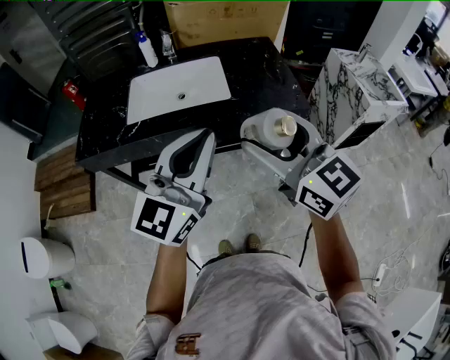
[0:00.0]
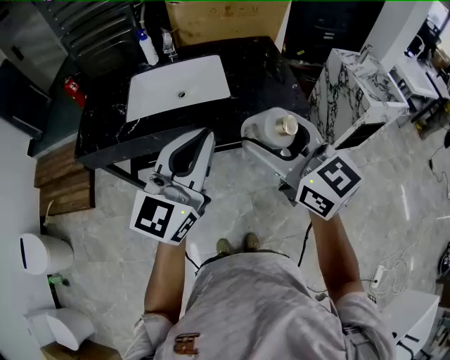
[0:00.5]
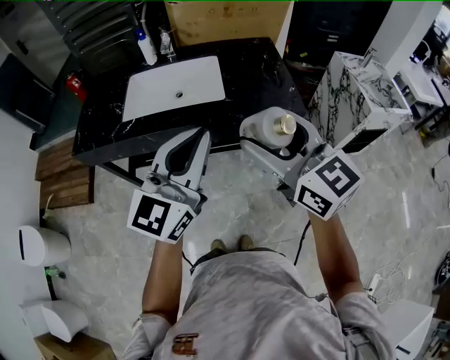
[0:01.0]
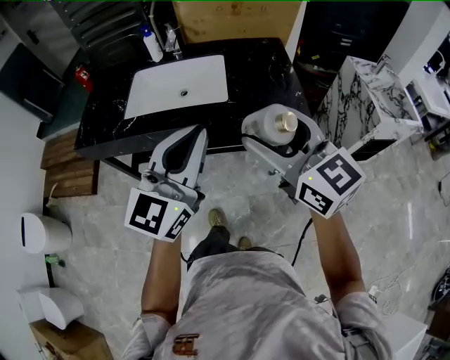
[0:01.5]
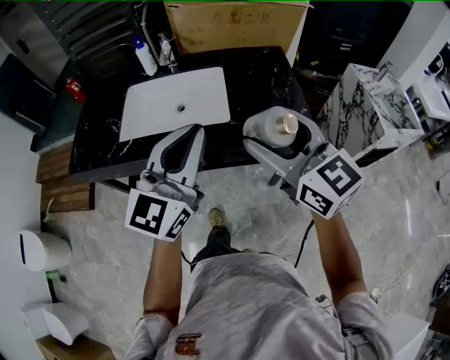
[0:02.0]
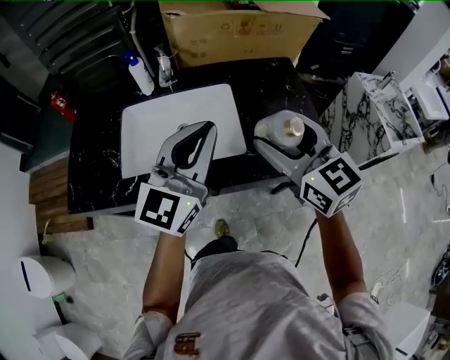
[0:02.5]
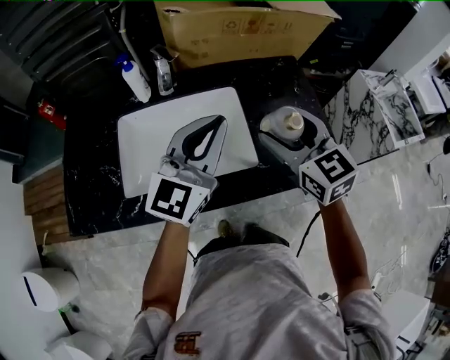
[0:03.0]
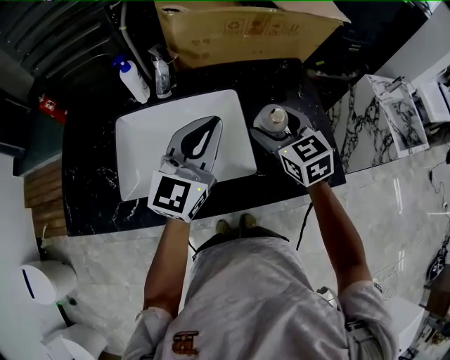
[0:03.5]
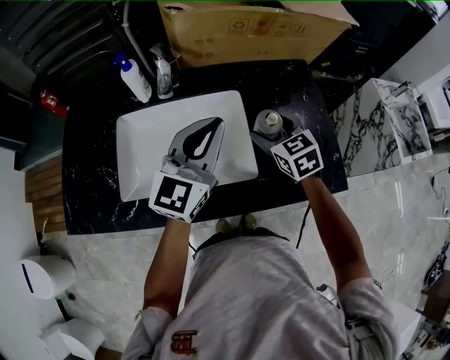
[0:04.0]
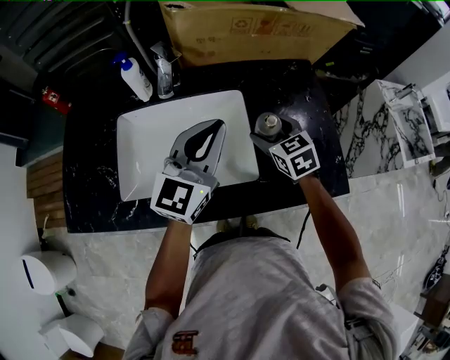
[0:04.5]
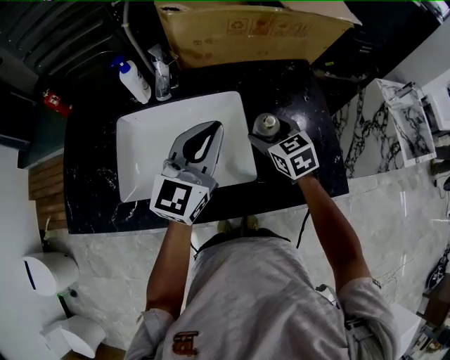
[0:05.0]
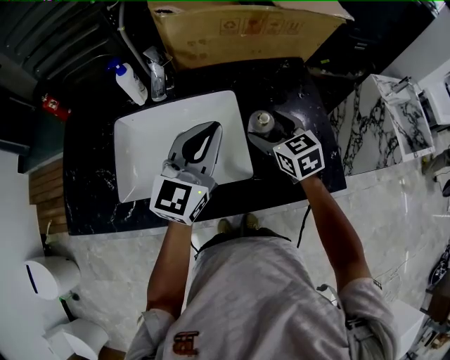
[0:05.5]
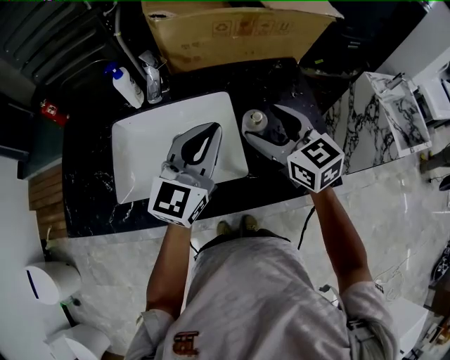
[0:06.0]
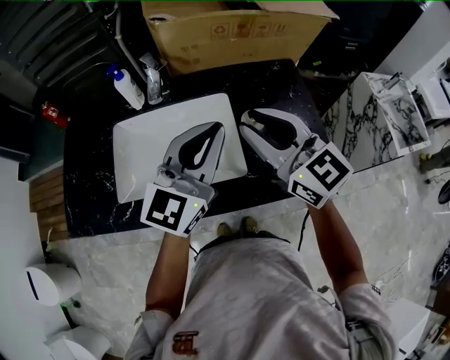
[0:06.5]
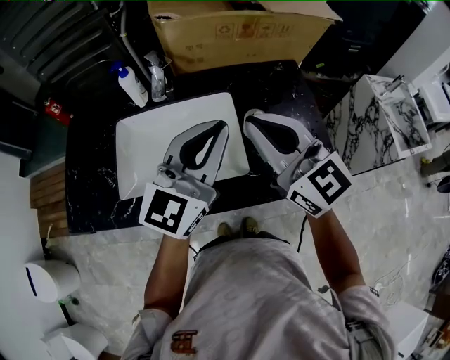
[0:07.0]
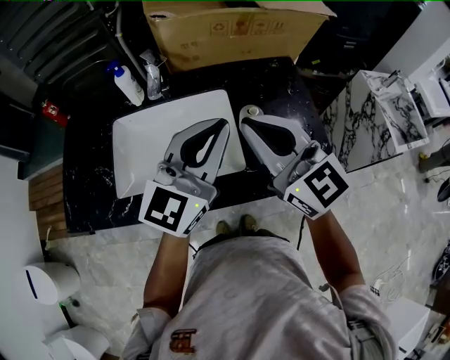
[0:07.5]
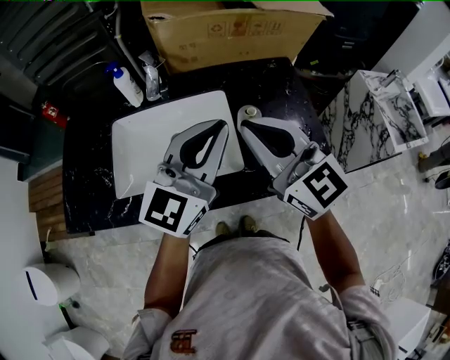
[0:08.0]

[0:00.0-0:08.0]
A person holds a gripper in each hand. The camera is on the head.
0:00.0 to 0:02.0: Both grippers move forward, some 15 cm.
0:02.0 to 0:04.0: The left gripper shifts approximately 30 cm forward; the right gripper goes some 40 cm forward and downward, and points its fingers roughly 30 degrees further downward.
0:04.0 to 0:06.0: The right gripper is displaced upward by some 10 cm, and turns by approximately 20 degrees.
0:06.0 to 0:08.0: The right gripper heads upward and backward, covering some 15 cm, and closes its fingers. The left gripper heads upward and backward, covering approximately 10 cm.

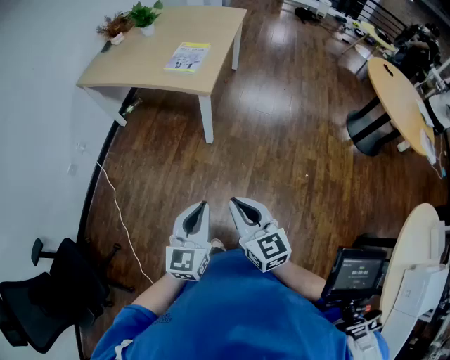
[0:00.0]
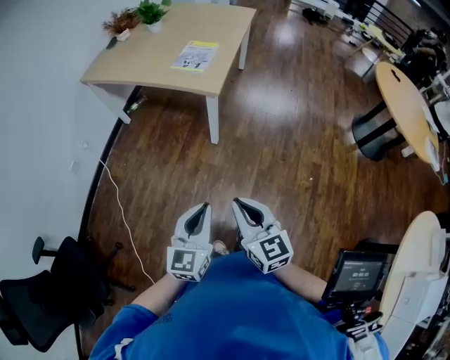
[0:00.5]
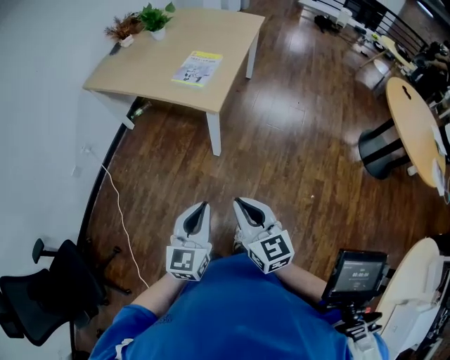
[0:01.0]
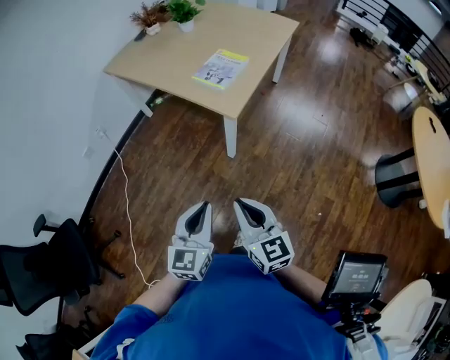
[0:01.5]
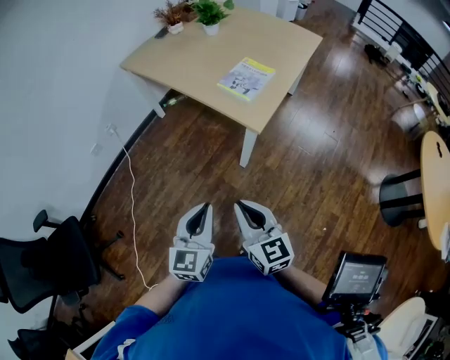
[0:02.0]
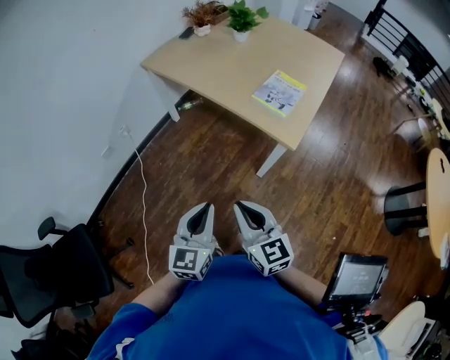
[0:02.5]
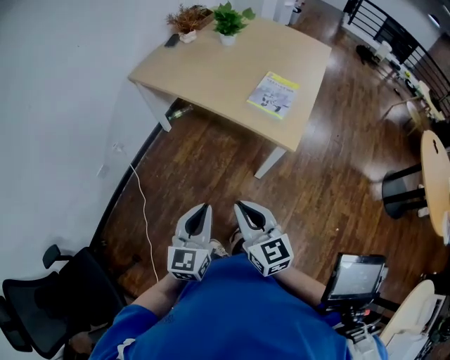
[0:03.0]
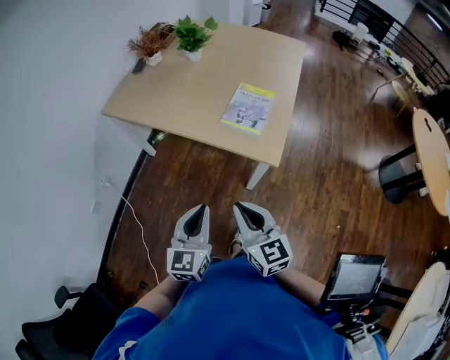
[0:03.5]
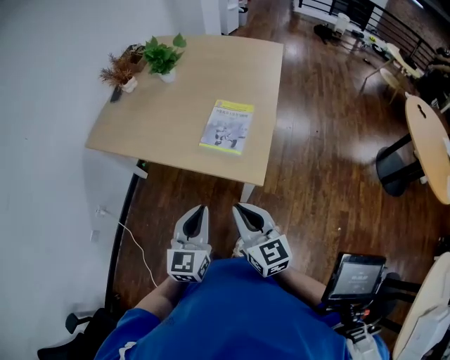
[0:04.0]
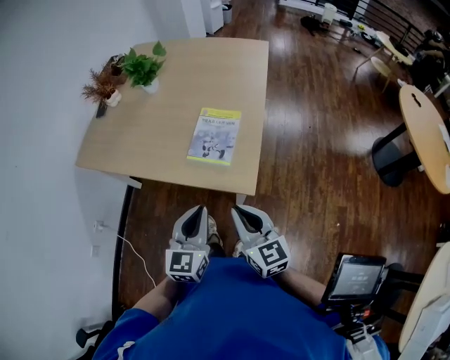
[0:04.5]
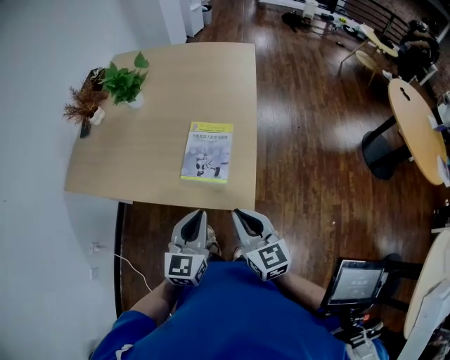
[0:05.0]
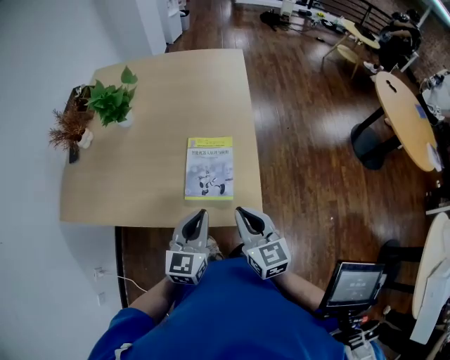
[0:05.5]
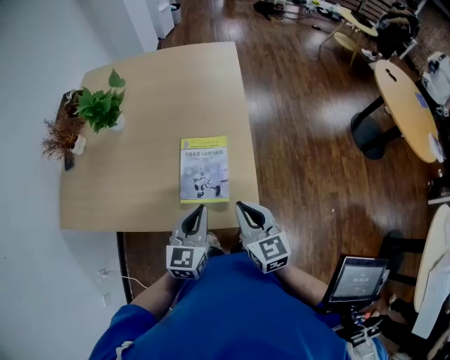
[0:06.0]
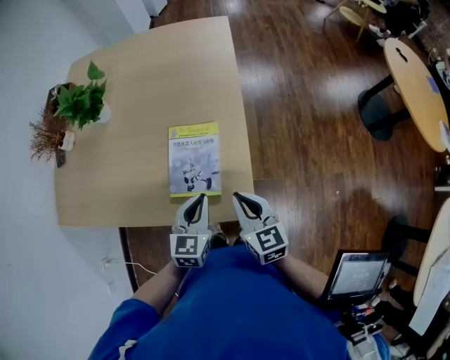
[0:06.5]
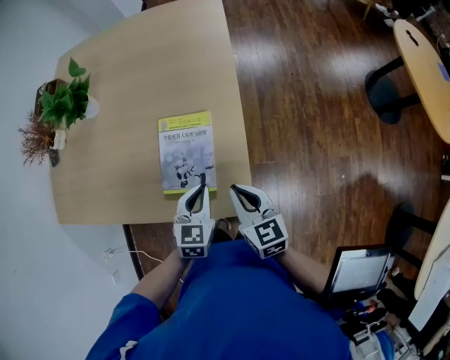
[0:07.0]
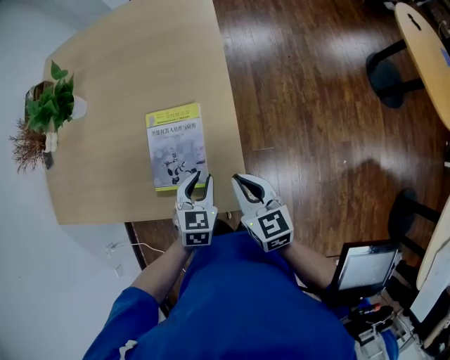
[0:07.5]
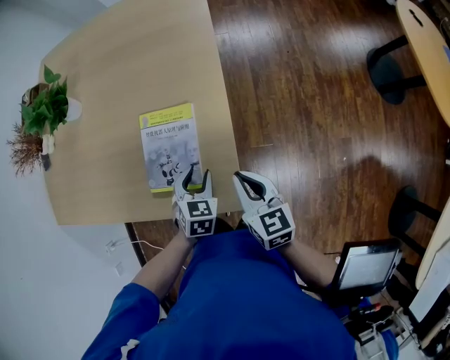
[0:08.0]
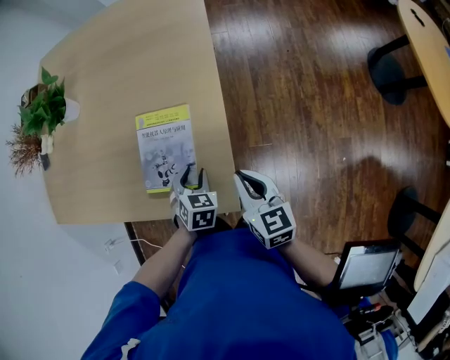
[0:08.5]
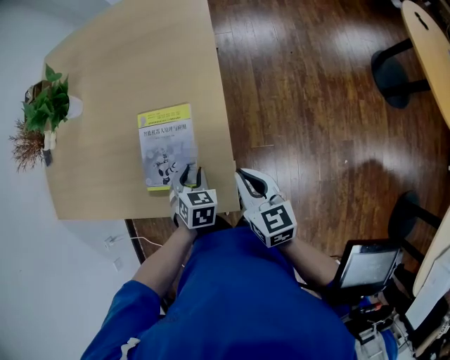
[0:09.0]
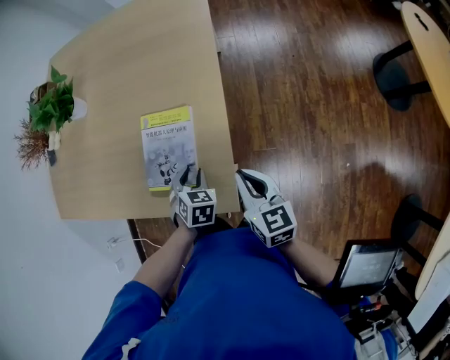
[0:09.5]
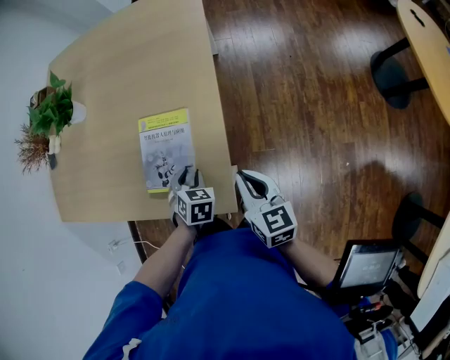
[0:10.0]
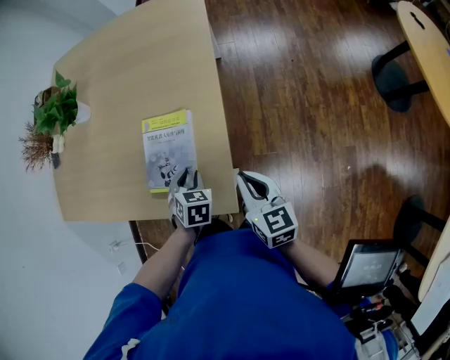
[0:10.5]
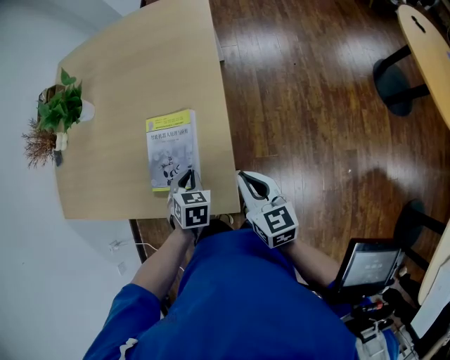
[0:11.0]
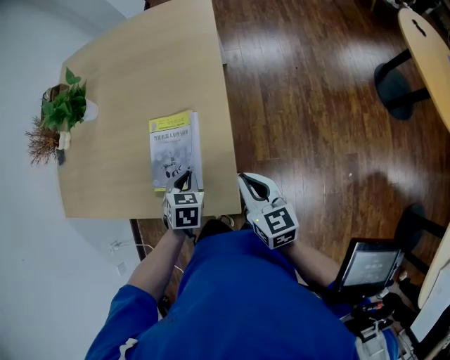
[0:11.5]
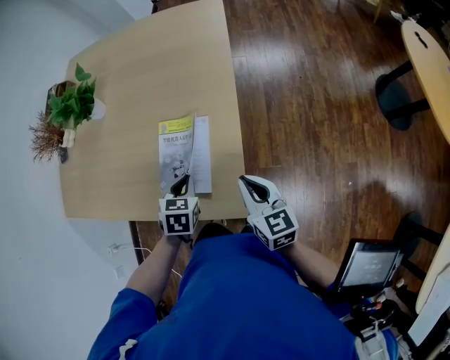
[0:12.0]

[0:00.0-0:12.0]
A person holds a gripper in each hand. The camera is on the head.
0:00.0 to 0:02.0: Both grippers move forward, approximately 20 cm.
0:02.0 to 0:04.0: The two grippers go about 25 cm forward.
0:04.0 to 0:06.0: The grippers both shift forward by approximately 20 cm. The left gripper swivels about 20 degrees. Meanwhile the right gripper turns by some 20 degrees.
0:06.0 to 0:08.0: The grippers both shift downward, to the right and forward by about 20 cm. The left gripper tips its fingers downward by approximately 30 degrees, and opens up.
0:08.0 to 0:10.0: There are only small adjustments of the grippers.
0:10.0 to 0:12.0: The left gripper travels upward by approximately 5 cm, and closes its fingers.

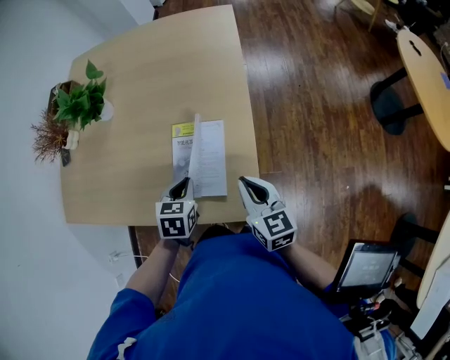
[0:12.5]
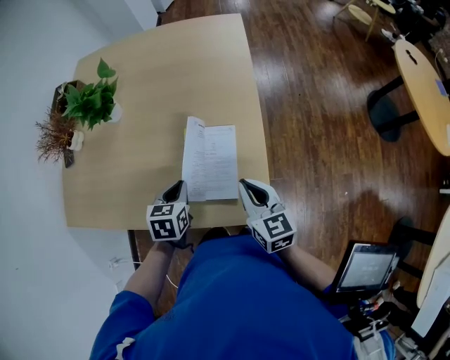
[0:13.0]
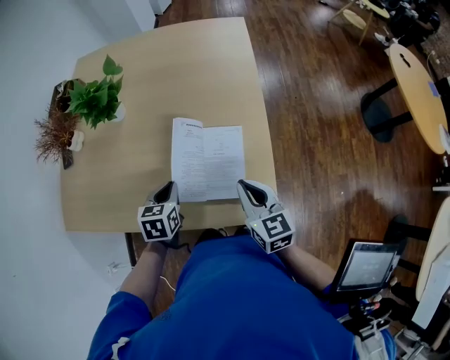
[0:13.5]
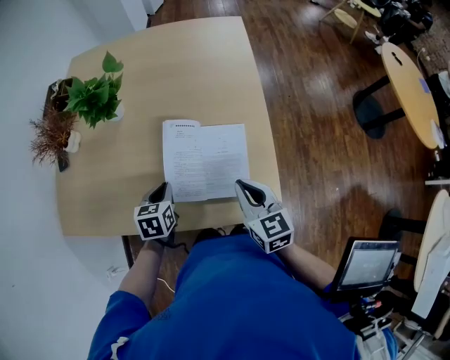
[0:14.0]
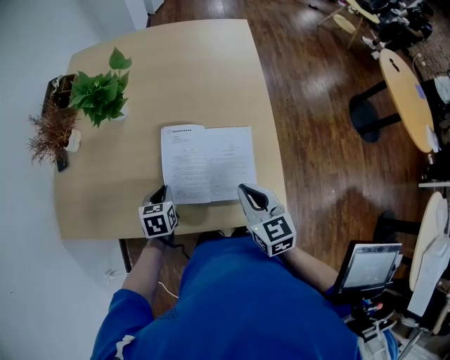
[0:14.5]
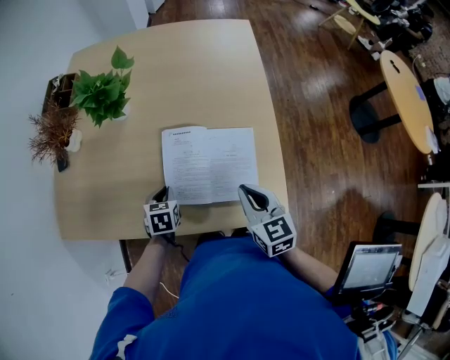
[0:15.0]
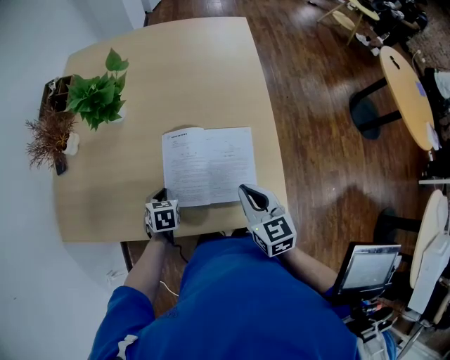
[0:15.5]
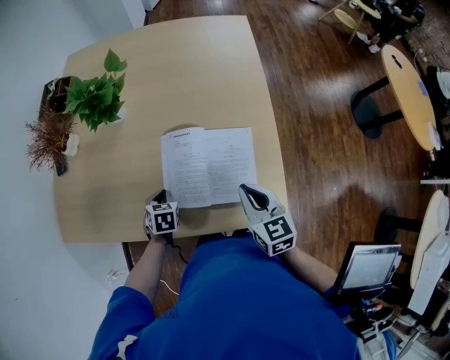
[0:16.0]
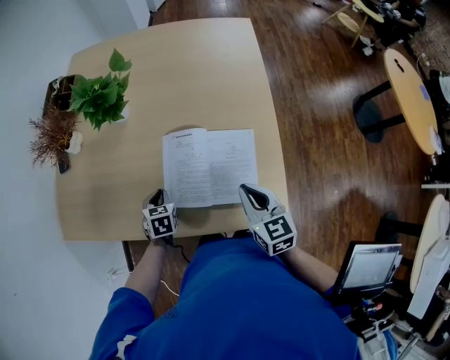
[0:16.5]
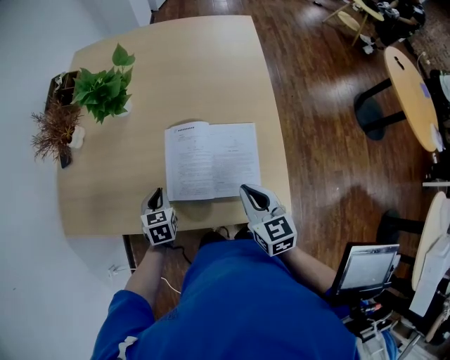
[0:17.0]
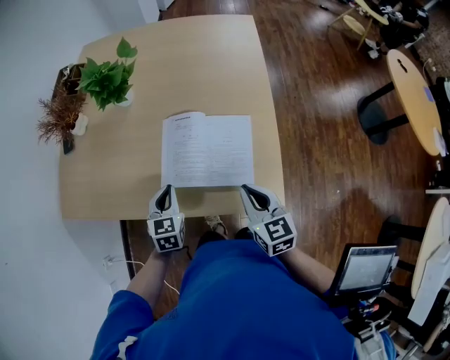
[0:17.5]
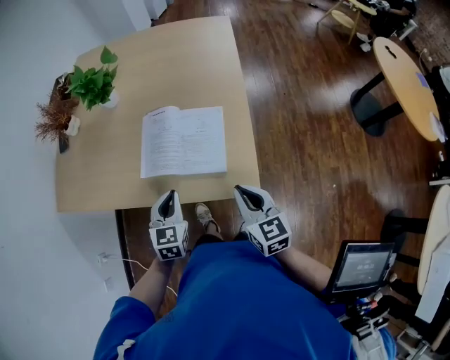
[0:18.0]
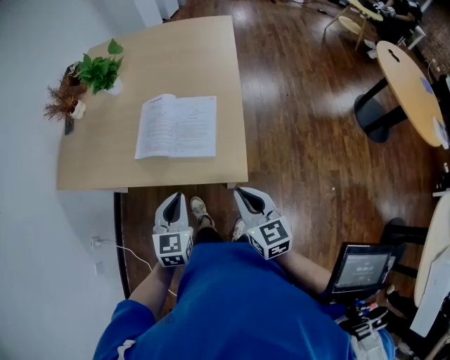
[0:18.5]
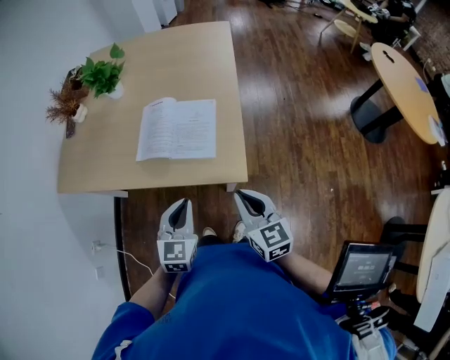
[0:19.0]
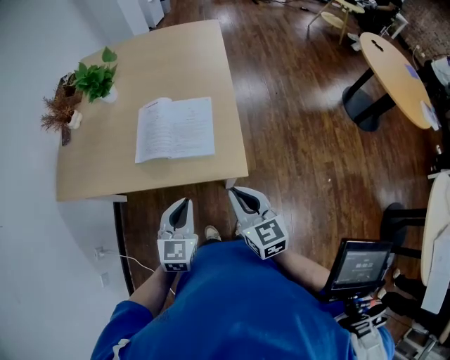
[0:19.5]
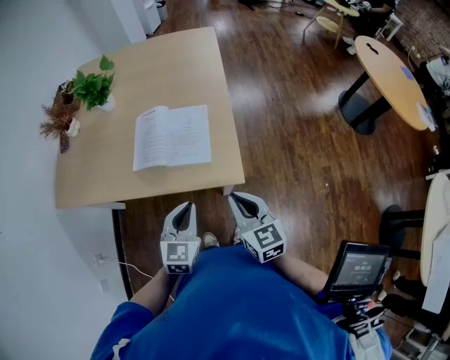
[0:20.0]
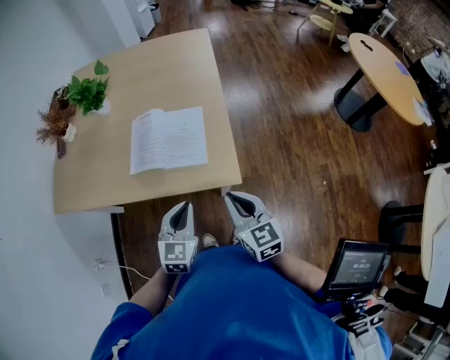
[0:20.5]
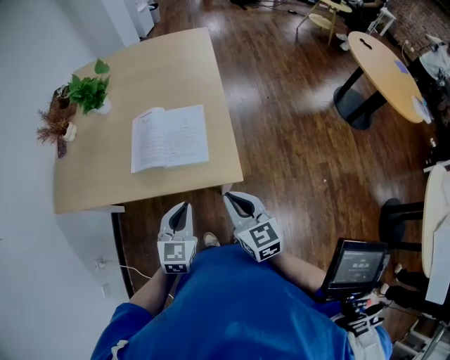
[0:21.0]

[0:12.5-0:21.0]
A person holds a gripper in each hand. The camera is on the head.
0:12.5 to 0:14.5: The left gripper shifts approximately 20 cm to the left. Meanwhile the right gripper heads to the left, covering roughly 15 cm.
0:14.5 to 0:16.5: The grippers stay close to where they were, moving slightly.
0:16.5 to 0:19.0: The right gripper shifts about 25 cm backward. The left gripper is displaced backward, to the right and upward by about 40 cm, and tips its fingers upward by roughly 30 degrees.
0:19.0 to 0:21.0: The grippers make only small movements.
